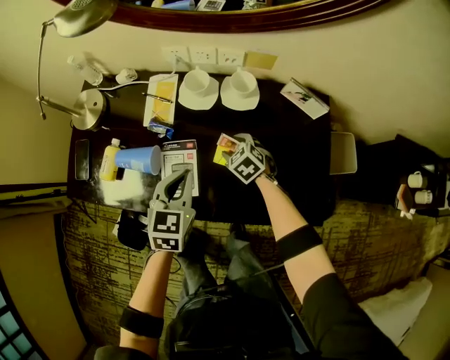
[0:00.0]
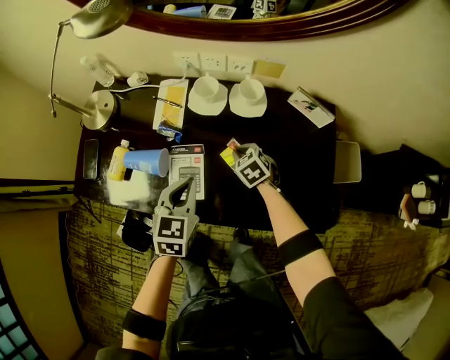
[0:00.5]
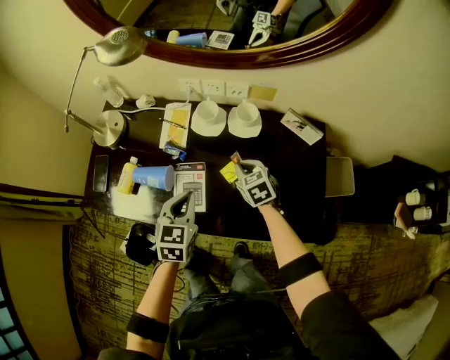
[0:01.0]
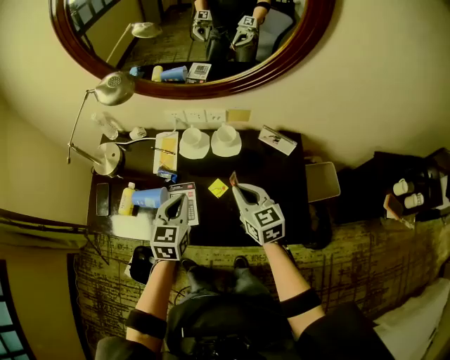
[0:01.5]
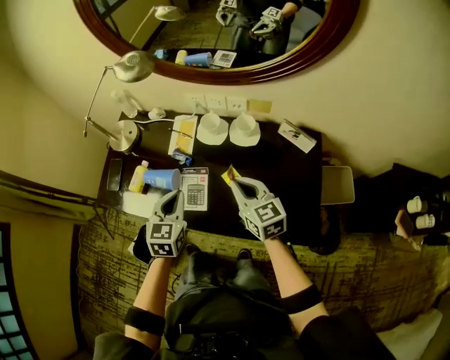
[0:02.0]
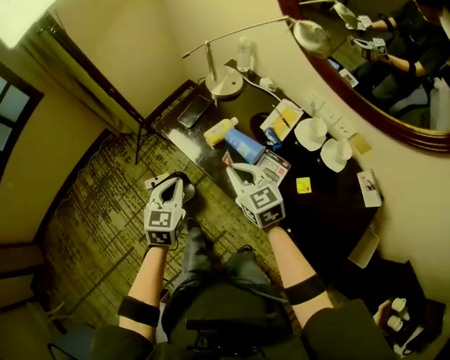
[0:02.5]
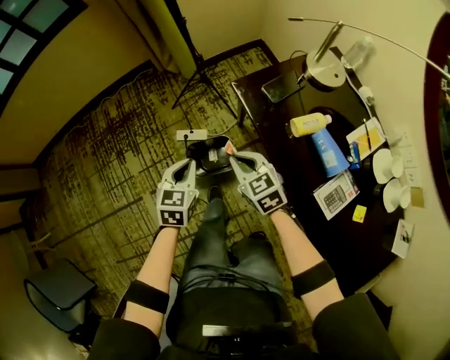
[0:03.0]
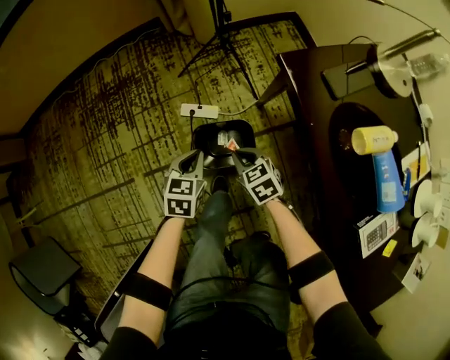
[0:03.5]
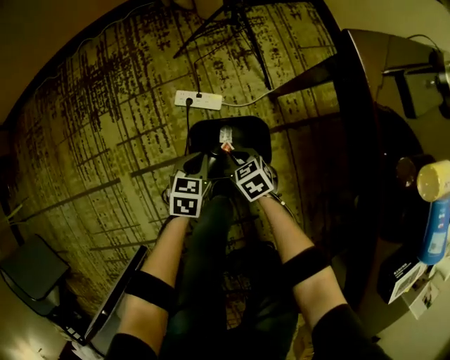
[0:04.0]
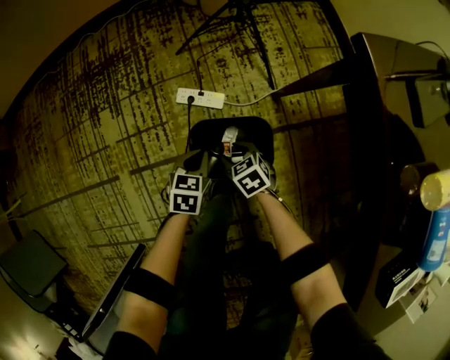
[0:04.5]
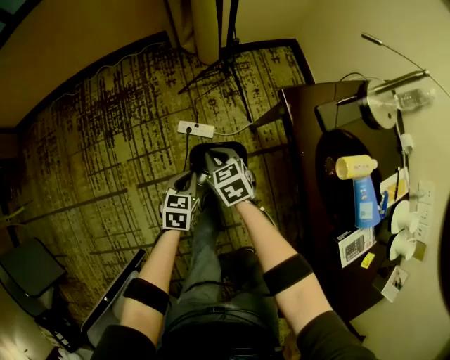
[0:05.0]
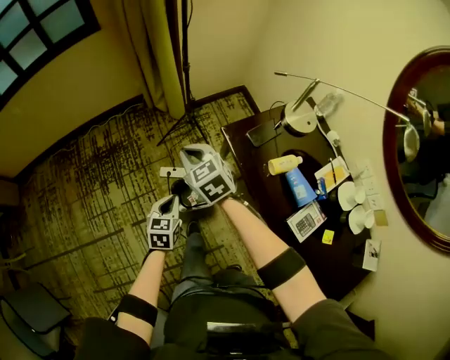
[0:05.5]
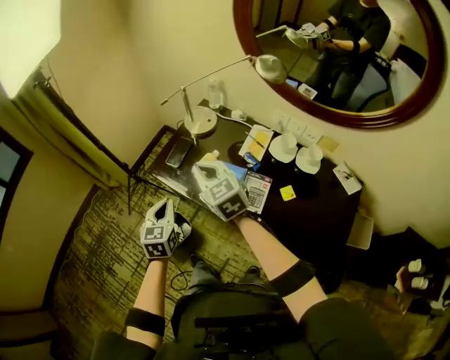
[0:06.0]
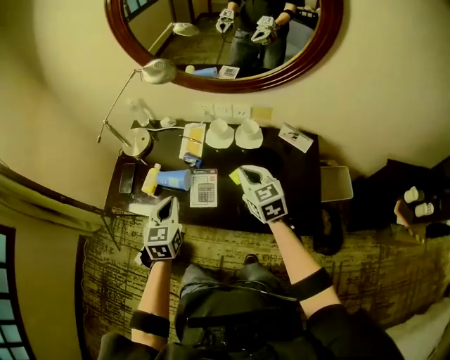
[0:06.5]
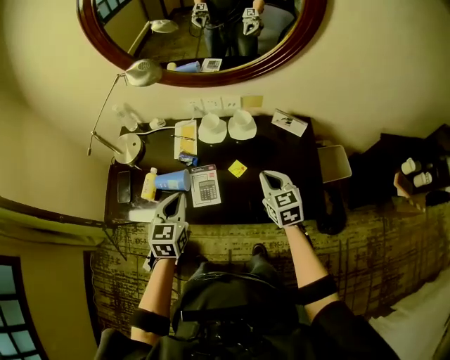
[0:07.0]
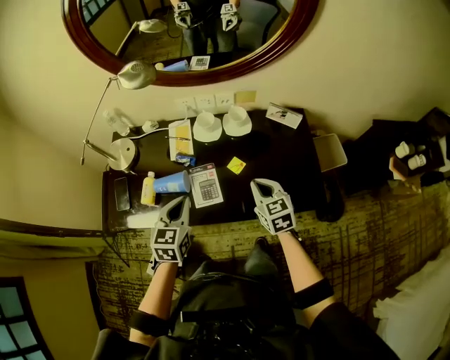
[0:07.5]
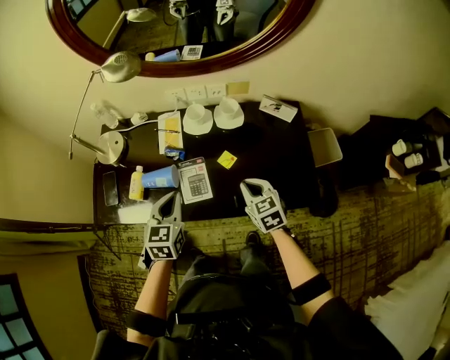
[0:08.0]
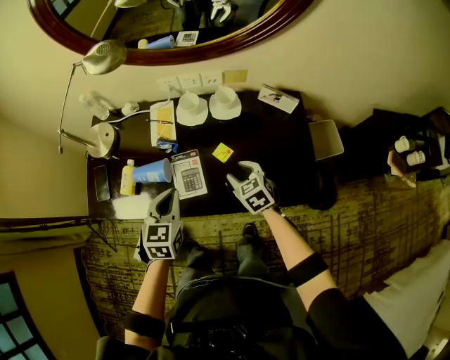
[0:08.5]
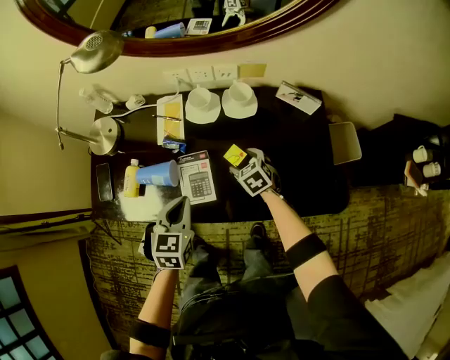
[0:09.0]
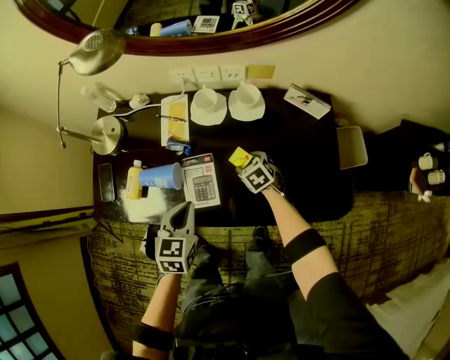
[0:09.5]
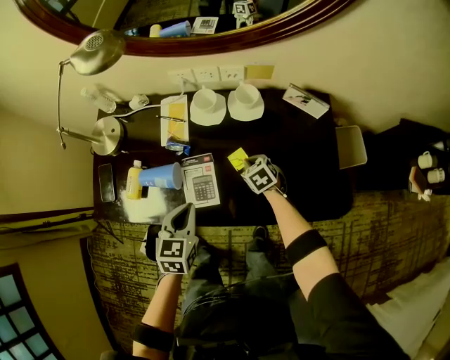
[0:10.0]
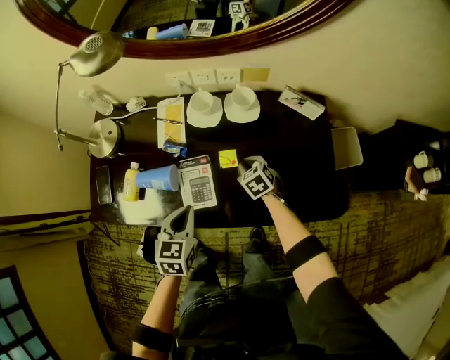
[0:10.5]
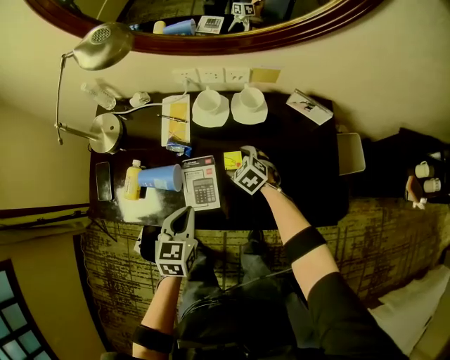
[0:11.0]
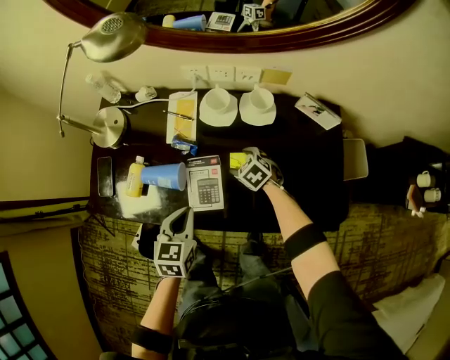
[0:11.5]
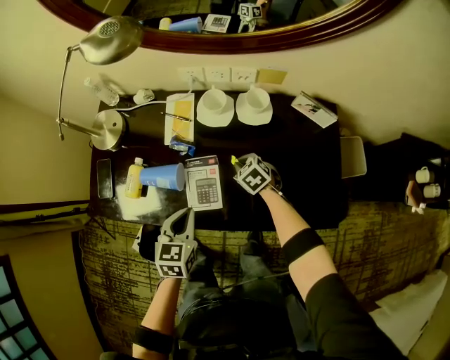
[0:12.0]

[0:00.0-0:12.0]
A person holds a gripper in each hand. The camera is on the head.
0:00.0 to 0:02.0: The left gripper travels upward by approximately 10 cm, while the right gripper is displaced upward by some 25 cm, tips its fingers upward by approximately 40 degrees, and closes.
0:02.0 to 0:04.0: The two grippers travel together, approximately 60 cm. The left gripper travels downward by roughly 60 cm, and changes its angle by some 60 degrees. Meanwhile the right gripper angles its fingers downward, by approximately 40 degrees.
0:04.0 to 0:06.0: The two grippers go about 70 cm upward. The right gripper points its fingers approximately 30 degrees further upward, and opens, then closes again. Meanwhile the left gripper rotates roughly 40 degrees.
0:06.0 to 0:08.0: The right gripper moves approximately 40 cm, and turns by roughly 50 degrees. The left gripper changes place by about 25 cm, and turns by roughly 40 degrees.
0:08.0 to 0:10.0: The right gripper goes some 25 cm downward and forward, turns by about 20 degrees, and opens, then closes once more. The left gripper heads downward, covering about 10 cm.
0:10.0 to 0:12.0: The right gripper goes roughly 5 cm to the left, and opens and closes again.

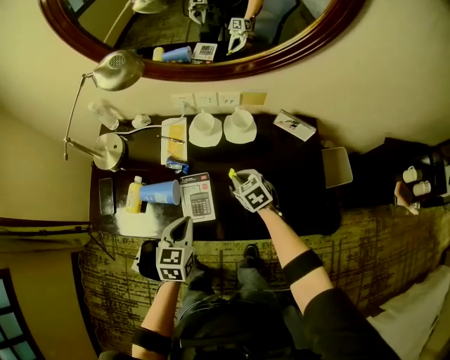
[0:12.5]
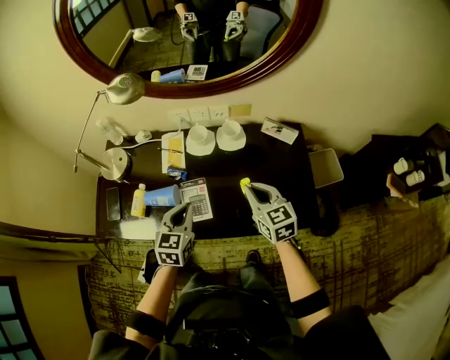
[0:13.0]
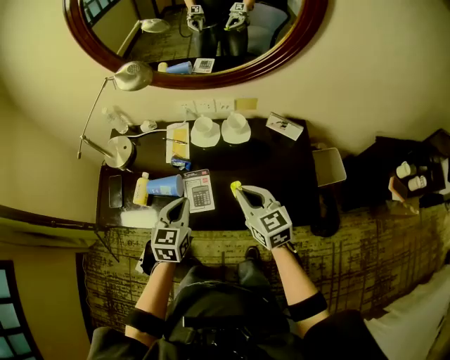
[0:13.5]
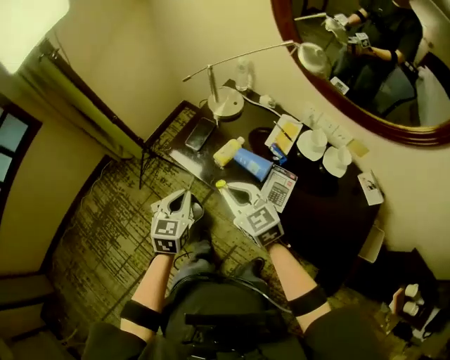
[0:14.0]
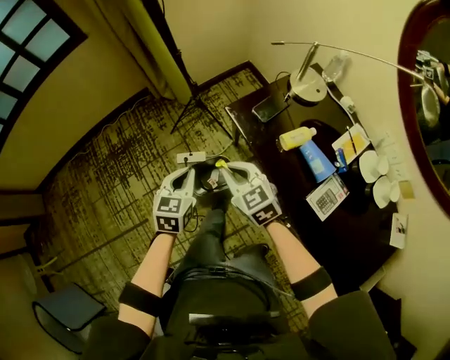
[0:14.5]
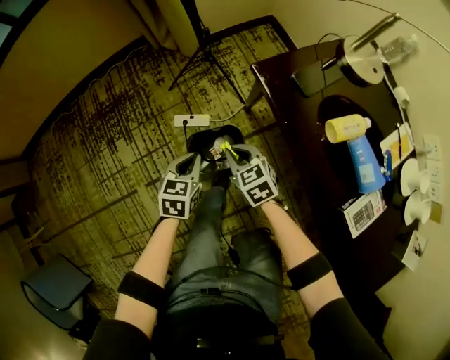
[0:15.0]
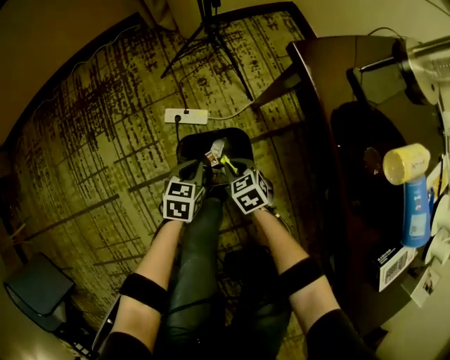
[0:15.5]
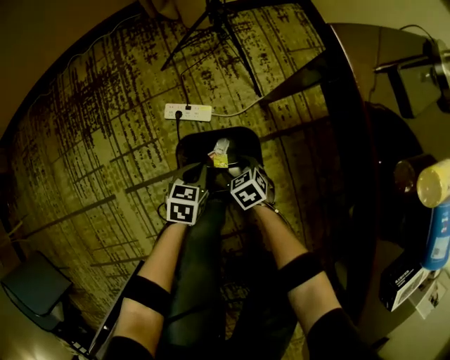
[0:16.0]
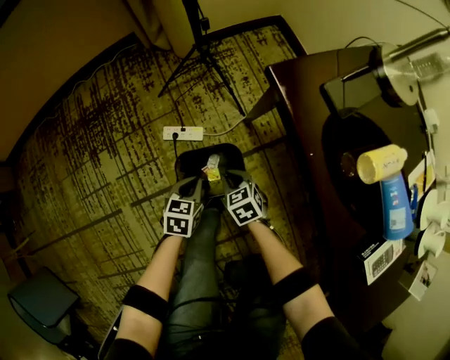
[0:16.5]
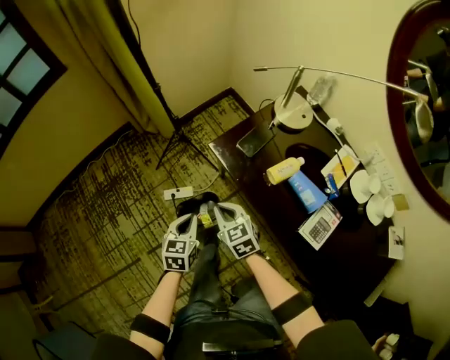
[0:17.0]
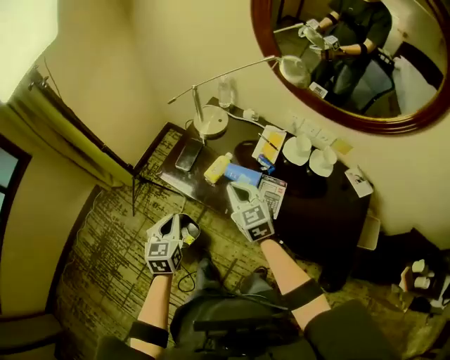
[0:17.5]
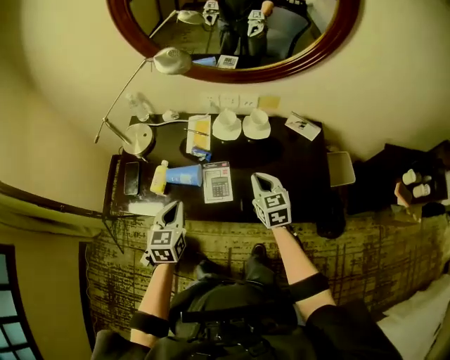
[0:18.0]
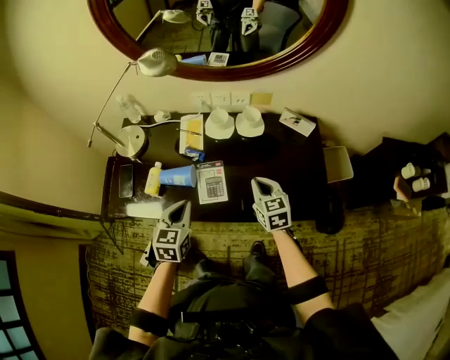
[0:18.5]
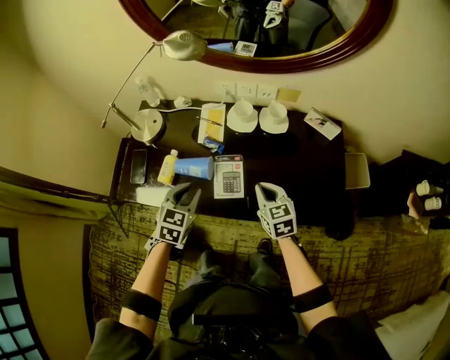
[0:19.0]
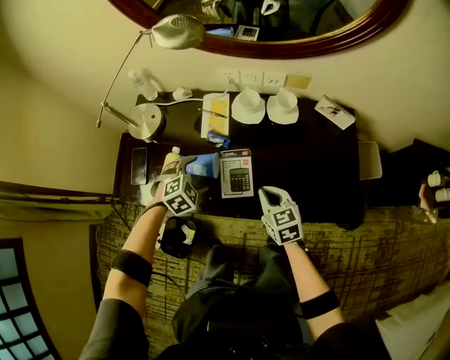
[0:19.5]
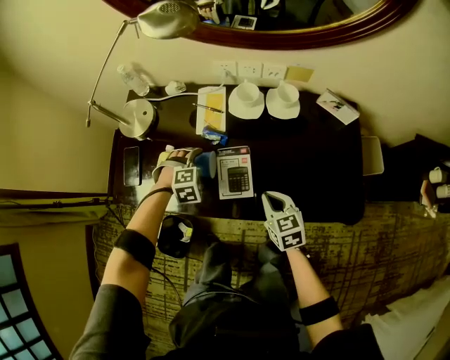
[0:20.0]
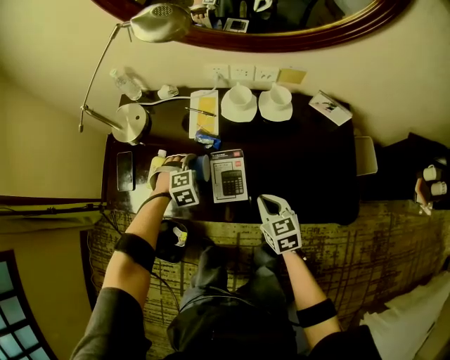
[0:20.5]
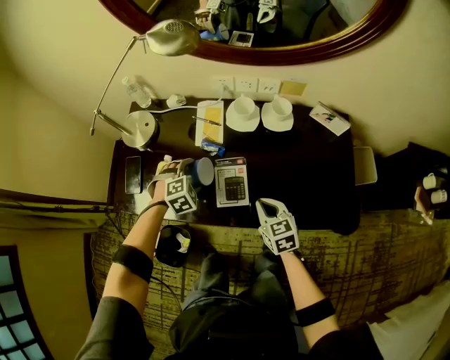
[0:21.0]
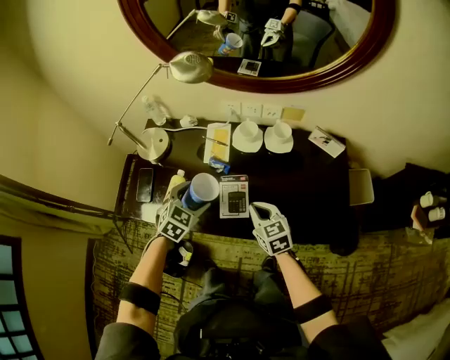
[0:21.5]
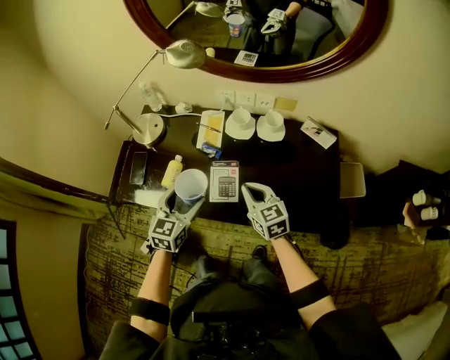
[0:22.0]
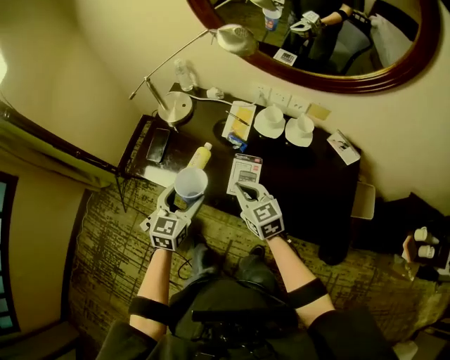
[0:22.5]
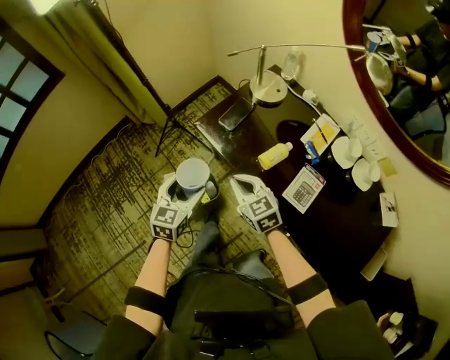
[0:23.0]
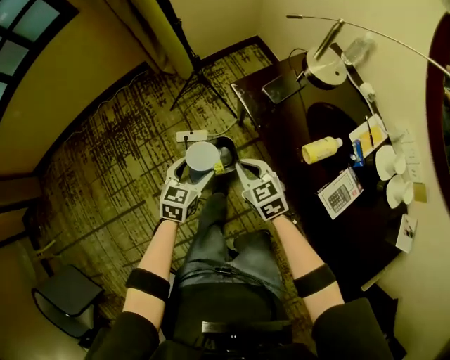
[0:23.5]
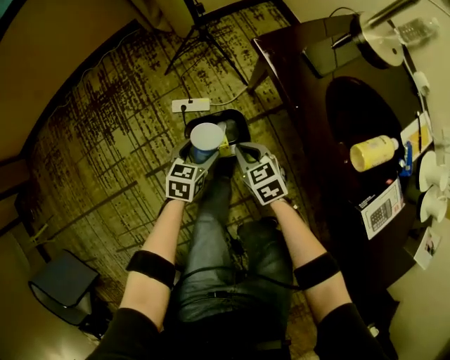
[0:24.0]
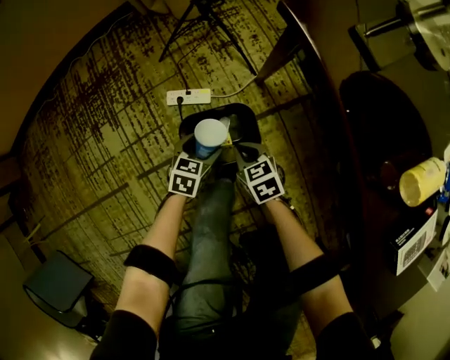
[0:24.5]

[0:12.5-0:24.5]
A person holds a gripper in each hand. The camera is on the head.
0:12.5 to 0:14.5: The two grippers travel together, approximately 50 cm. The right gripper swivels roughly 60 degrees, while the left gripper swivels about 50 degrees.
0:14.5 to 0:16.5: Both grippers travel together downward, about 50 cm. The right gripper turns by roughly 20 degrees, and opens, then closes again.
0:16.5 to 0:18.5: Both grippers are carried about 50 cm. The right gripper turns by some 80 degrees. Meanwhile the left gripper shifts about 50 cm upward, and changes its angle by some 60 degrees.
0:18.5 to 0:20.5: The right gripper goes roughly 15 cm downward and to the left. The left gripper goes roughly 25 cm downward and forward, twists roughly 60 degrees clockwise, seen from behind, and opens its fingers.
0:20.5 to 0:22.5: The right gripper moves to the left and upward, some 15 cm, and swivels roughly 30 degrees. The left gripper heads upward and backward, covering approximately 25 cm, and rolls counterclockwise, seen from behind, by about 70 degrees.
0:22.5 to 0:24.5: Both grippers travel together downward, approximately 60 cm. The right gripper rotates about 50 degrees. The left gripper changes its angle by roughly 50 degrees.

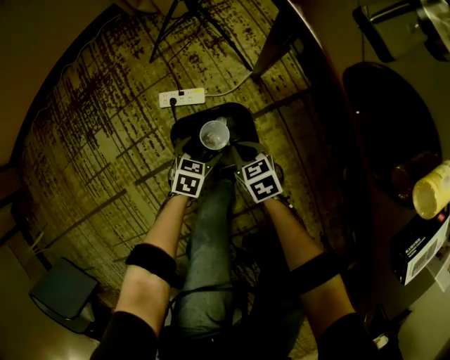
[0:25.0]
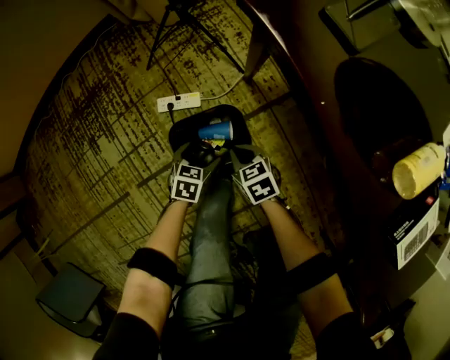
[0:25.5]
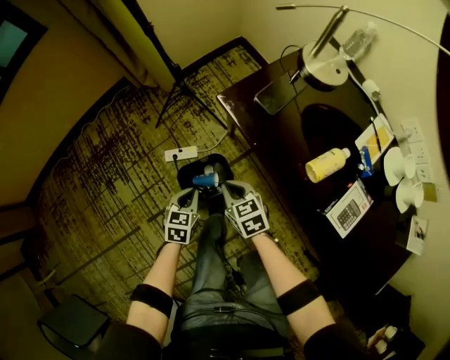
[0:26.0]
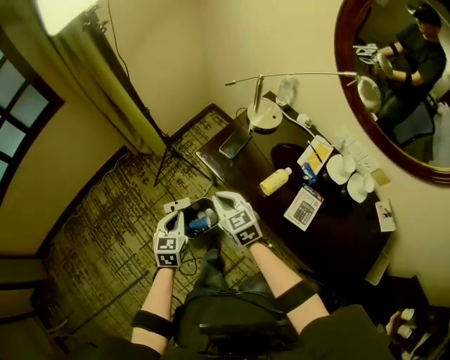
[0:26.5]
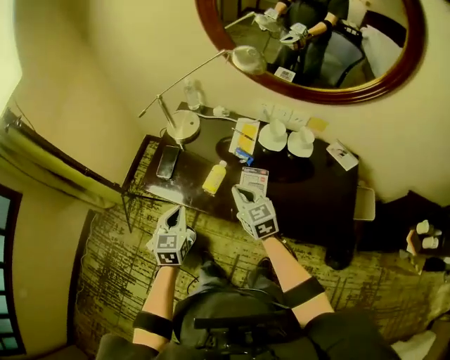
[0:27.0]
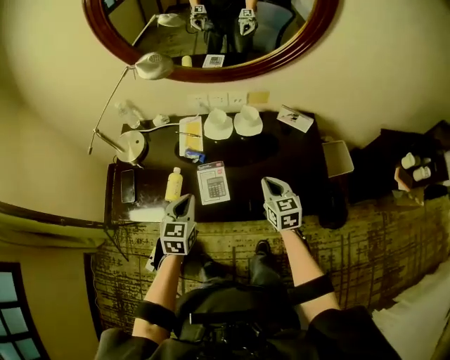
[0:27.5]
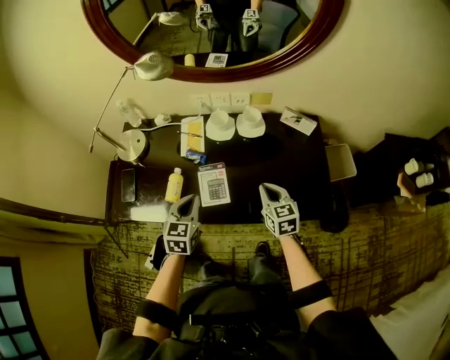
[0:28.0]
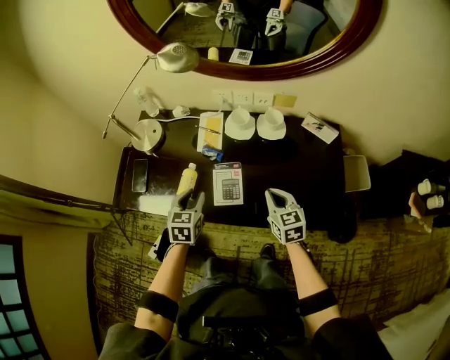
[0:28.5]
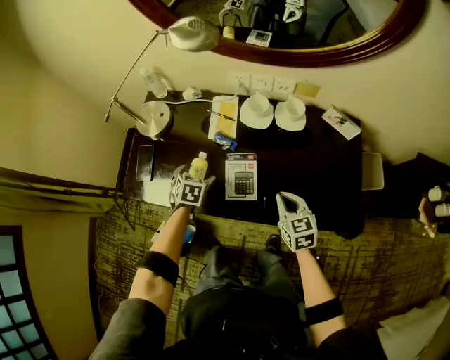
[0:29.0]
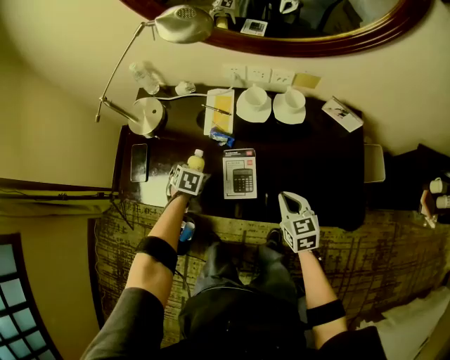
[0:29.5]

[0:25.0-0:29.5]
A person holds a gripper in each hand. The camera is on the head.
0:25.0 to 0:27.0: Both grippers move upward, some 60 cm. The right gripper swivels approximately 60 degrees, while the left gripper tips its fingers upward by some 30 degrees, and closes up.
0:27.0 to 0:29.5: The right gripper ends up some 25 cm from where it was, and swivels approximately 20 degrees. Meanwhile the left gripper goes roughly 20 cm downward, points its fingers some 40 degrees further downward, and opens its fingers.
